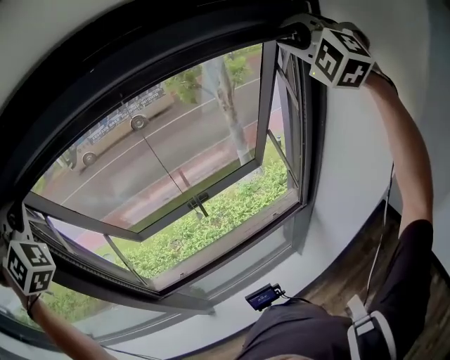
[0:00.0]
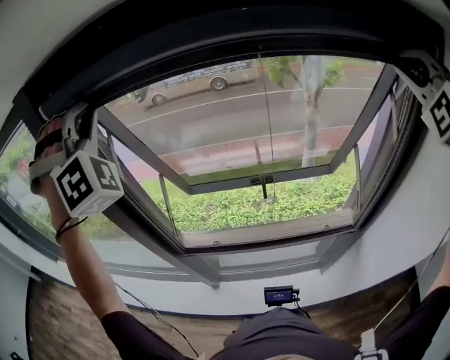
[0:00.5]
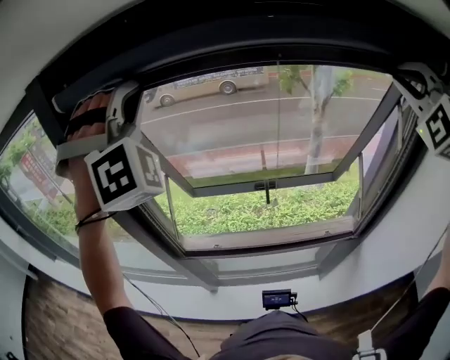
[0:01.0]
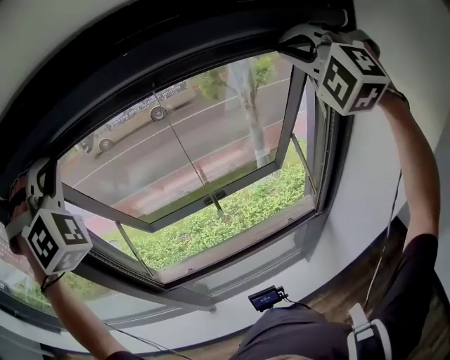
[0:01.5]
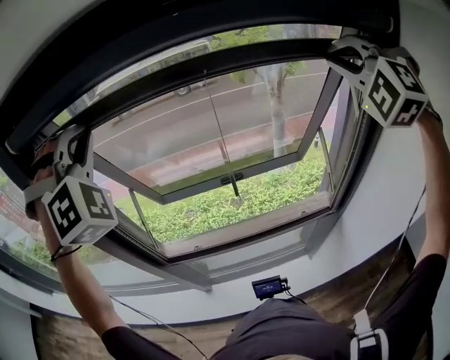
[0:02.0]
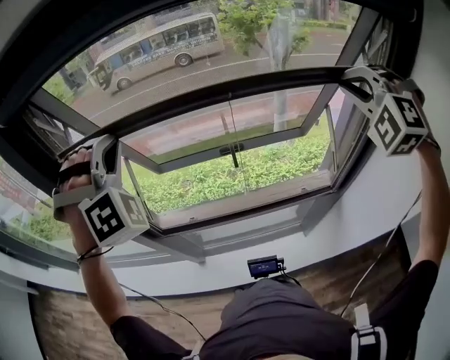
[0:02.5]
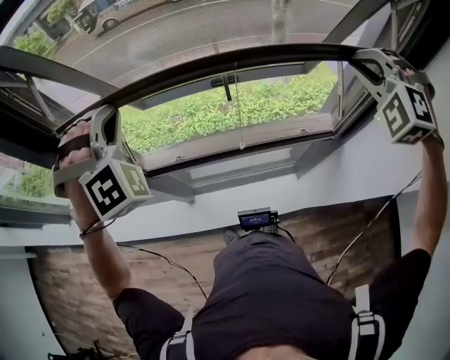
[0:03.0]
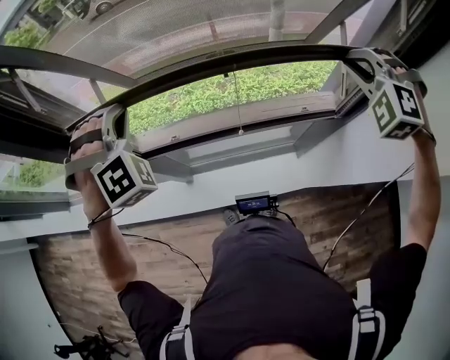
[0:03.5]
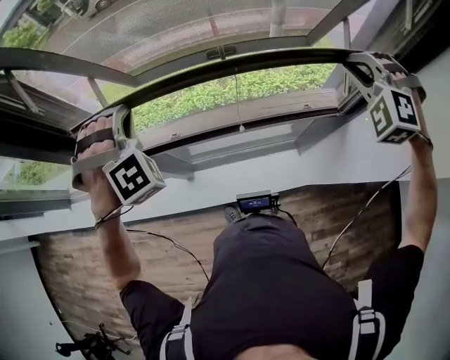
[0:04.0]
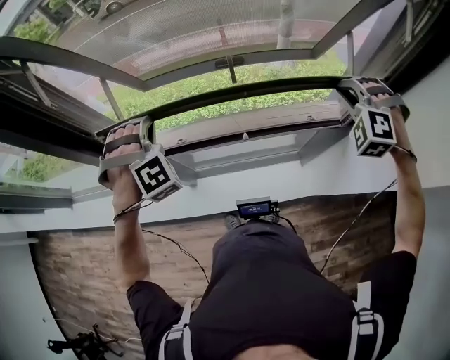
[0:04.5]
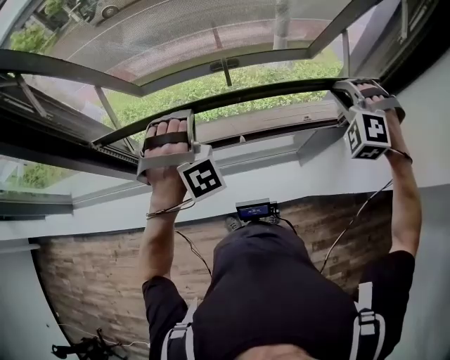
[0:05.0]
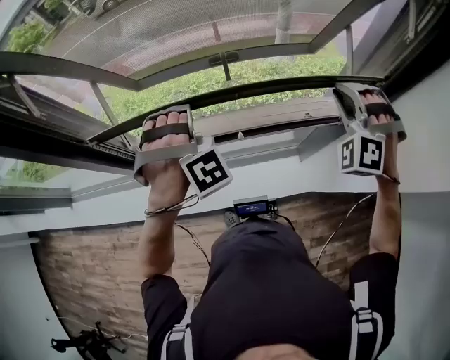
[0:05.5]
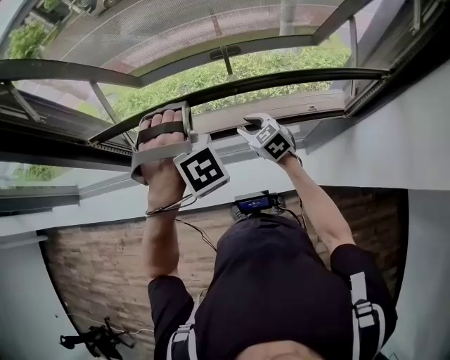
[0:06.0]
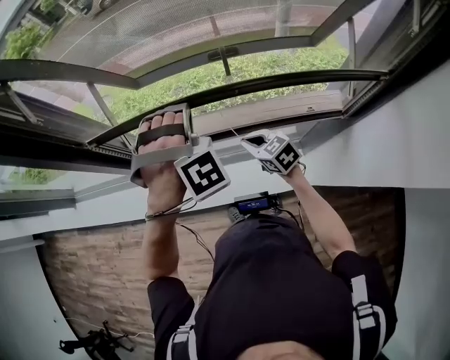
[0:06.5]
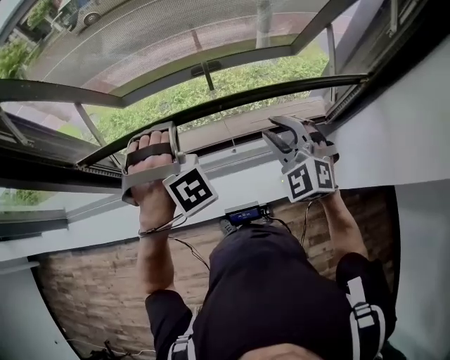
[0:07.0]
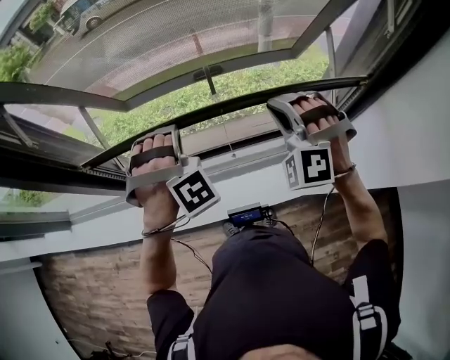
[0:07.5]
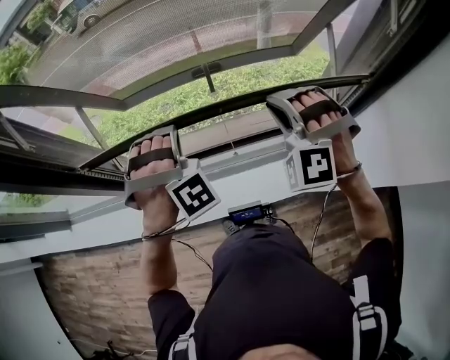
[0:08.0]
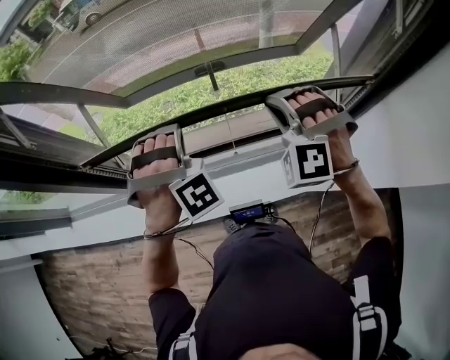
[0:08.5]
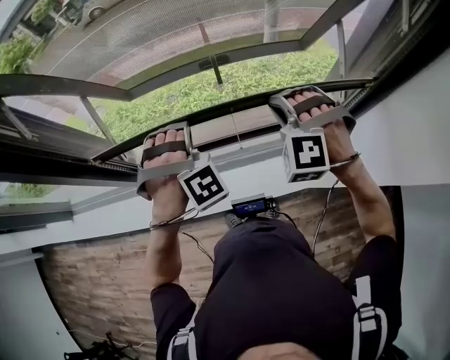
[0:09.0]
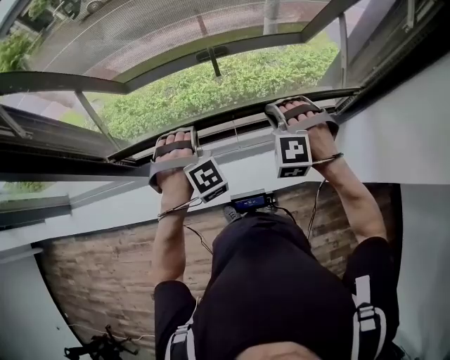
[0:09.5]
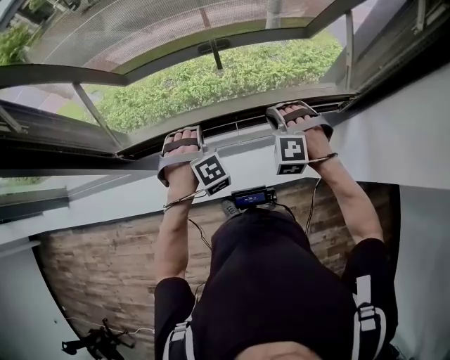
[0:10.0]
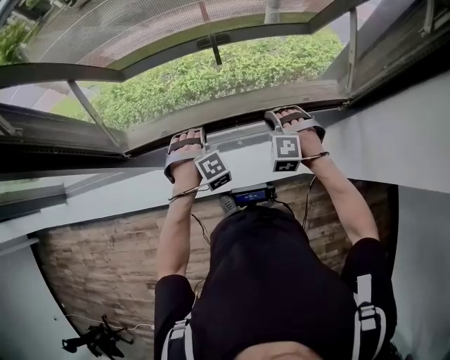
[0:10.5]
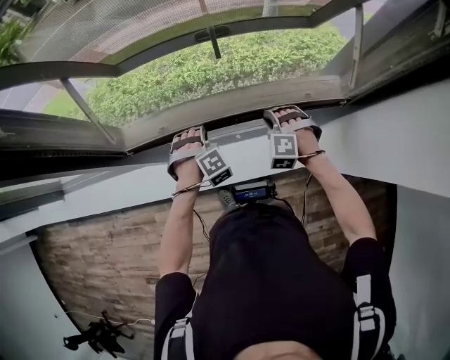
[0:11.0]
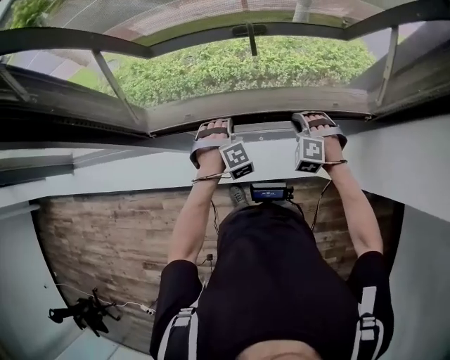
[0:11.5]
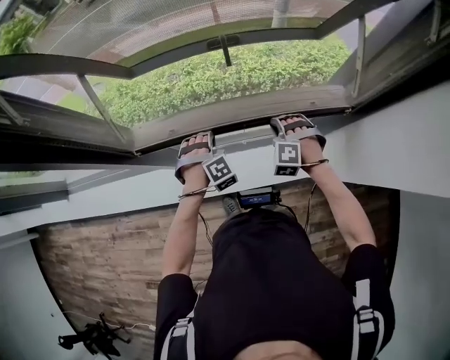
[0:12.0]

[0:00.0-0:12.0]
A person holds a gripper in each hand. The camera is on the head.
0:00.0 to 0:02.0: The right gripper moves roughly 10 cm.
0:02.0 to 0:04.0: The right gripper is displaced downward by roughly 30 cm, and turns by some 20 degrees.
0:04.0 to 0:06.0: The right gripper goes some 30 cm downward, rolls clockwise, seen from behind, by some 60 degrees, and opens up.
0:06.0 to 0:08.0: The right gripper goes approximately 25 cm upward, rolls counterclockwise, seen from behind, by roughly 70 degrees, and closes up.
0:08.0 to 0:10.0: The right gripper shifts about 20 cm downward.
0:10.0 to 0:12.0: The right gripper travels downward by roughly 10 cm.

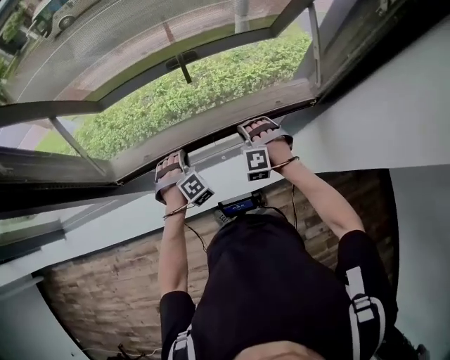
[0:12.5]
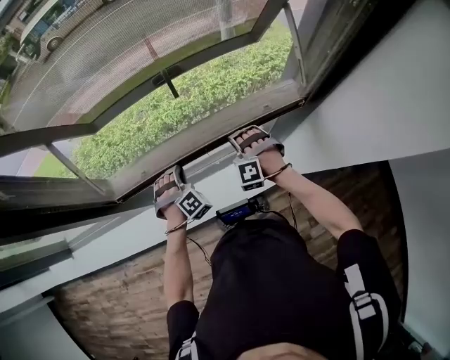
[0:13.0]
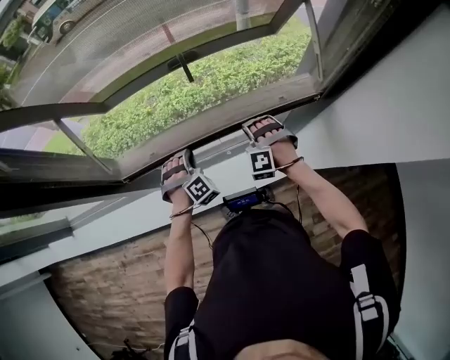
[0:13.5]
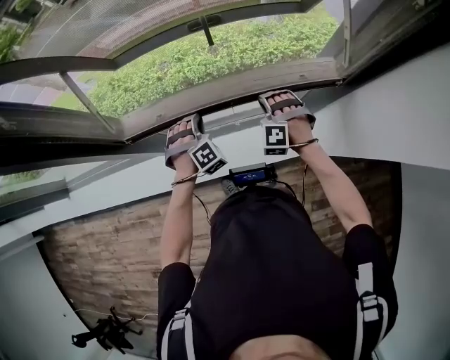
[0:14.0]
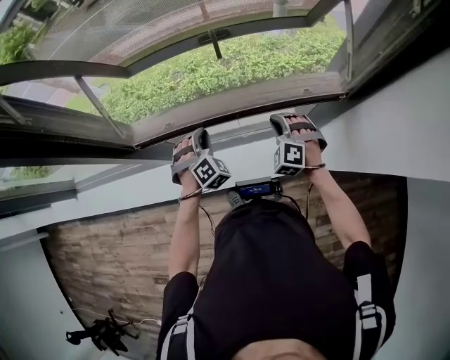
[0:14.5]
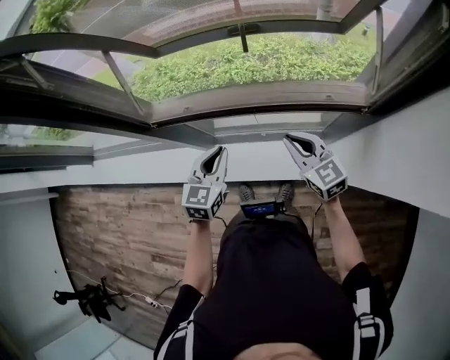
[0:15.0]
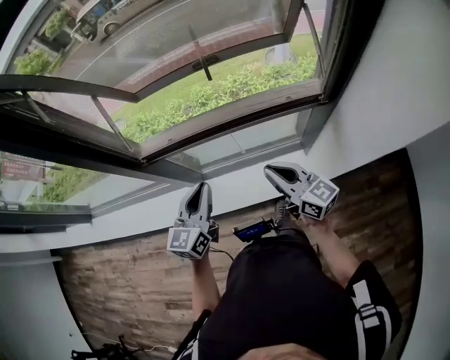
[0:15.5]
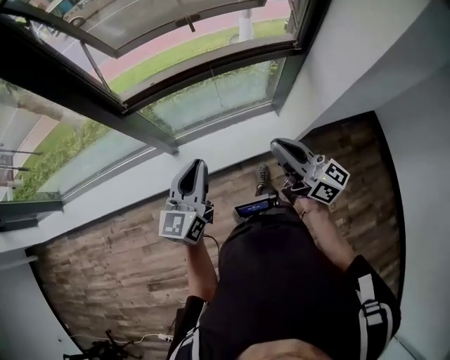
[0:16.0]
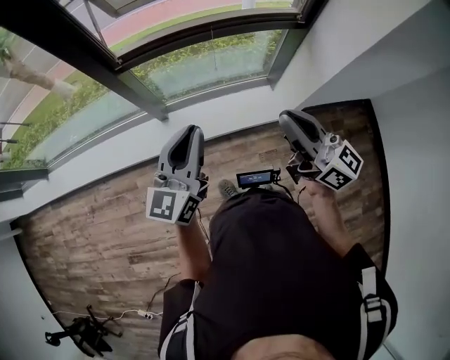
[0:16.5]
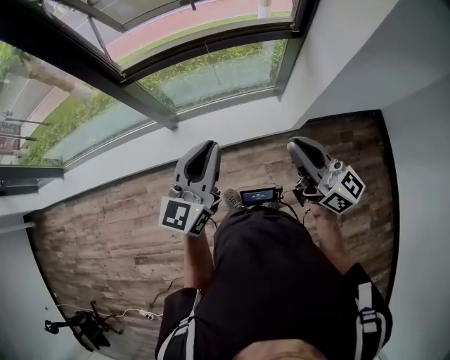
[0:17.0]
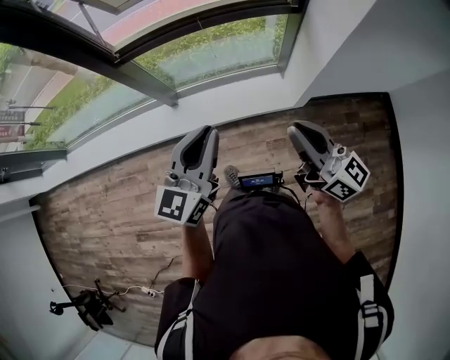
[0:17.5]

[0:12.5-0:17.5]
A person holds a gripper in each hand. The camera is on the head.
0:12.5 to 0:15.0: The right gripper is displaced upward by about 10 cm, and rolls clockwise, seen from behind, by some 70 degrees.
0:15.0 to 0:17.5: The right gripper moves some 40 cm, and points its fingers approximately 30 degrees further upward.

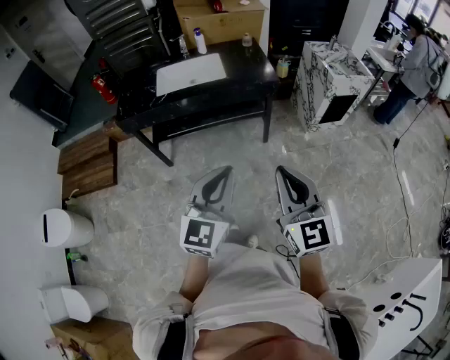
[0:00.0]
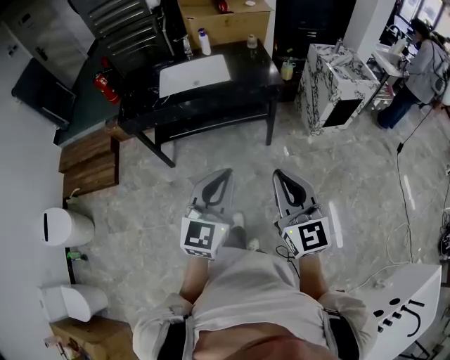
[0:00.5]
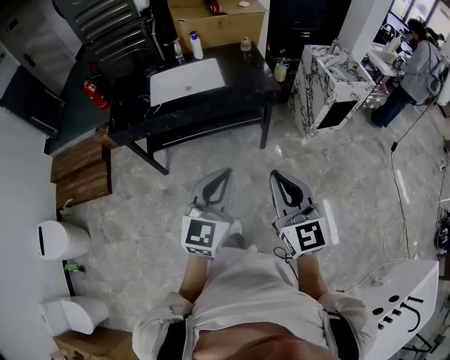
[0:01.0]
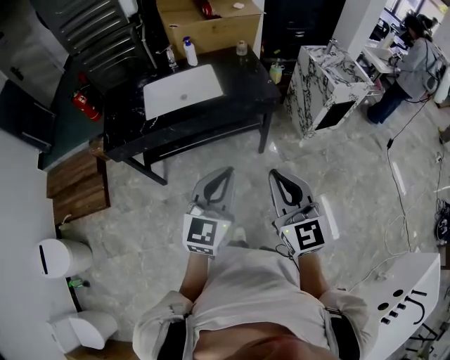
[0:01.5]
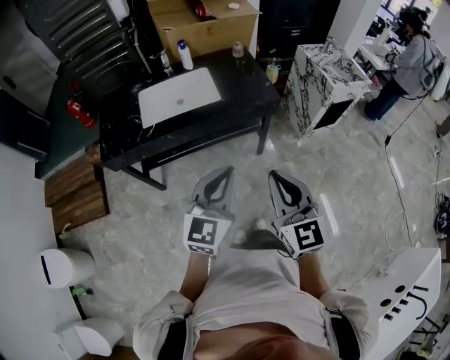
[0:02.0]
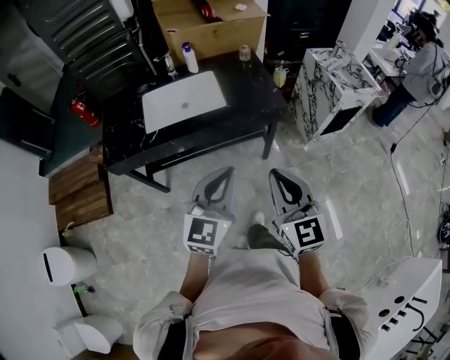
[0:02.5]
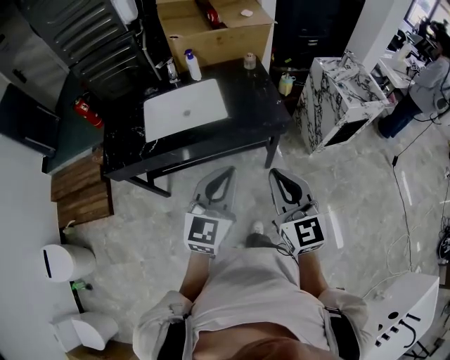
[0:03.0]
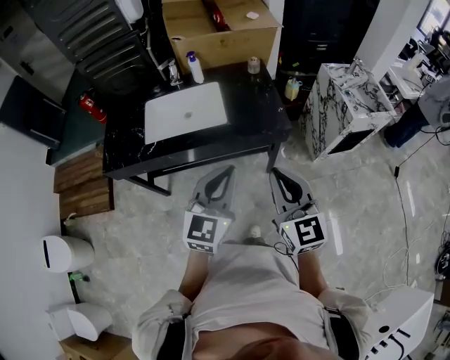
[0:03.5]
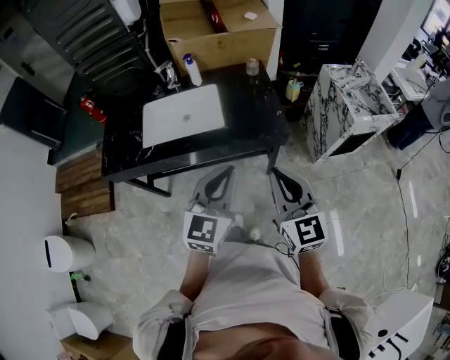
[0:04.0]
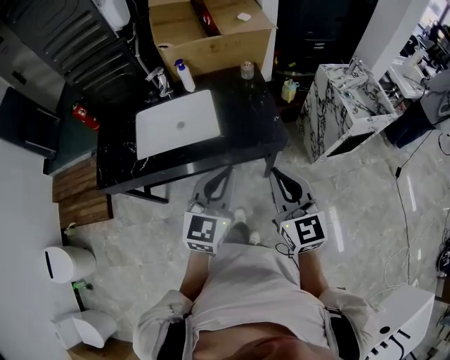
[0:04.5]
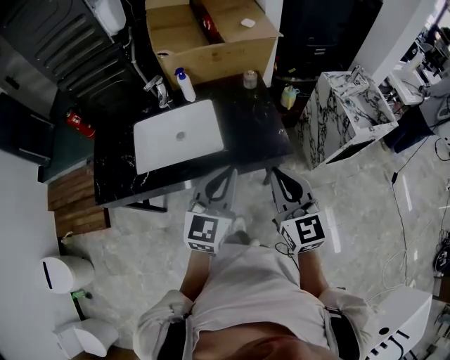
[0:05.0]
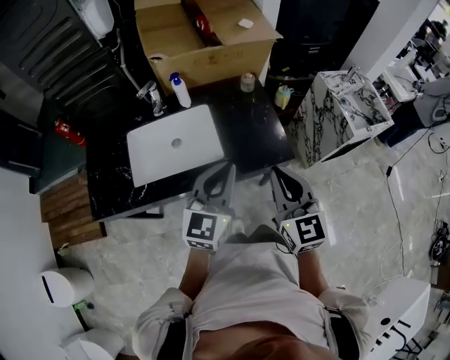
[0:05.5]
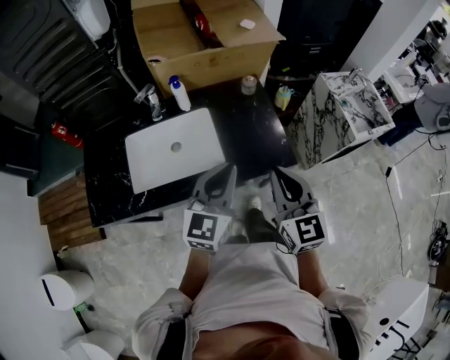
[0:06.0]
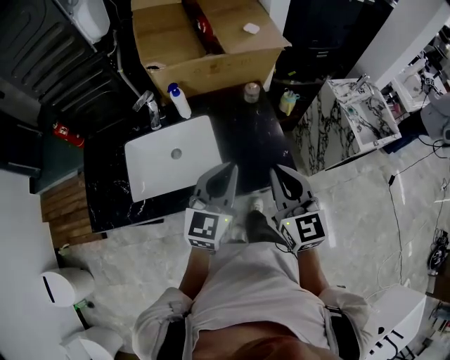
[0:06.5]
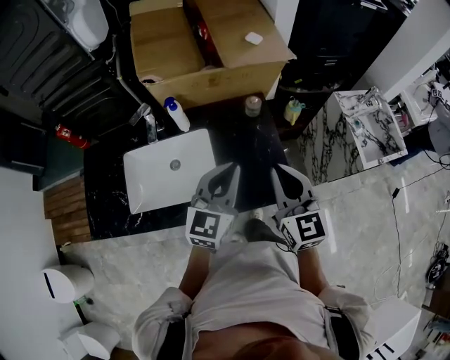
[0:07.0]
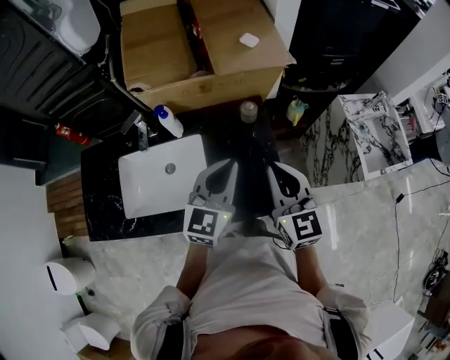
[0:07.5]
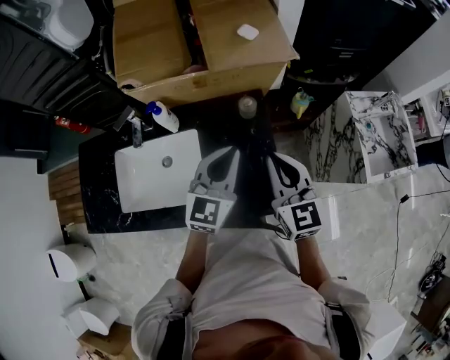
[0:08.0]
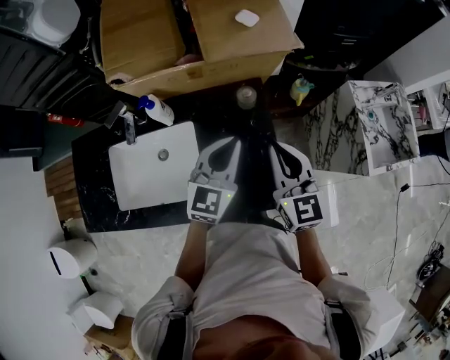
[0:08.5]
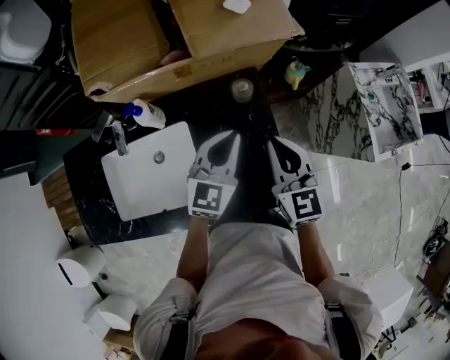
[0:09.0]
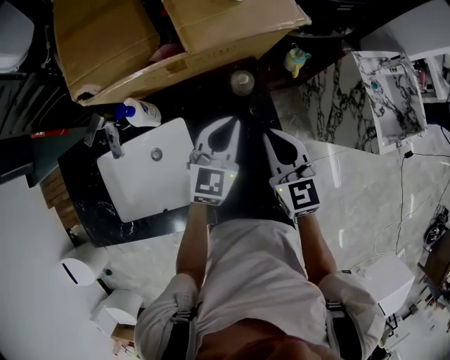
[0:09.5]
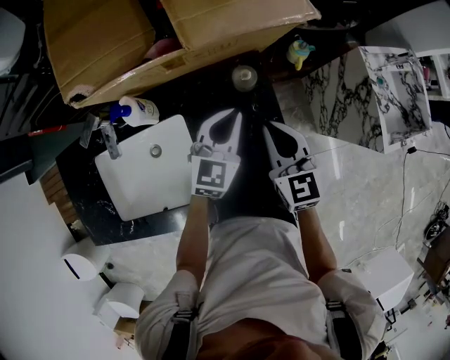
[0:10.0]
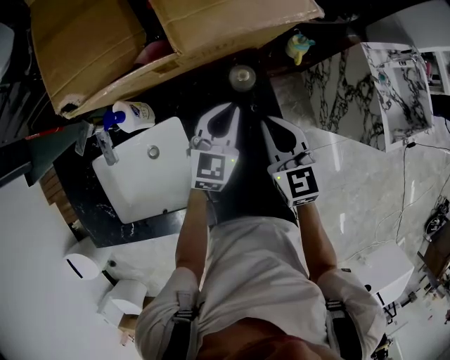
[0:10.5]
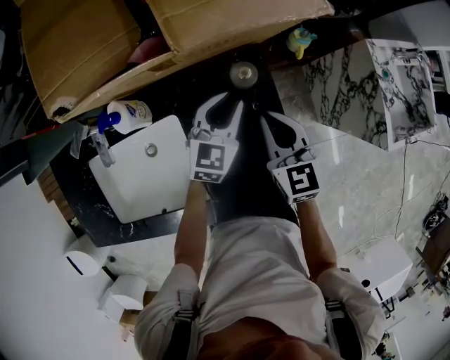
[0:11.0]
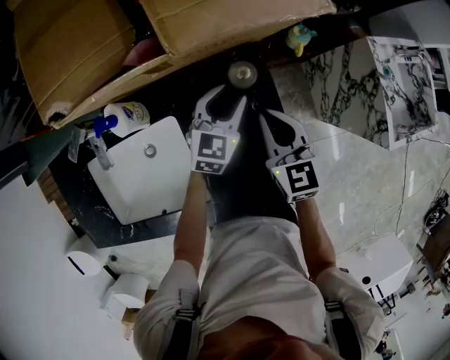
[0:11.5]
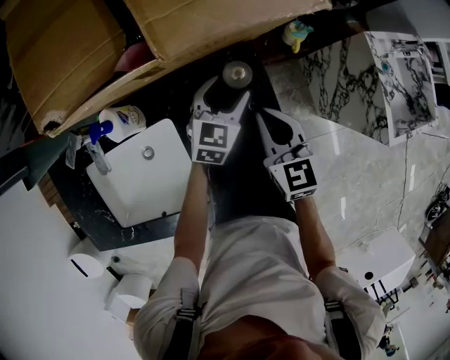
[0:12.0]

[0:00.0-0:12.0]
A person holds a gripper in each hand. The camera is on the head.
0:00.0 to 0:02.0: The left gripper shifts approximately 20 cm forward. Meanwhile the right gripper shifts roughly 20 cm forward and to the left.
0:02.0 to 0:04.0: Both grippers move forward, roughly 20 cm.
0:04.0 to 0:06.0: Both grippers travel together forward, approximately 20 cm.
0:06.0 to 0:08.0: The two grippers go about 25 cm forward.
0:08.0 to 0:10.0: The two grippers go roughly 15 cm downward and forward.
0:10.0 to 0:12.0: The left gripper is displaced downward and forward by approximately 10 cm, and opens, while the right gripper is displaced downward by some 5 cm.
